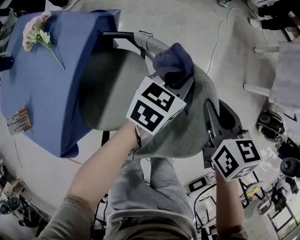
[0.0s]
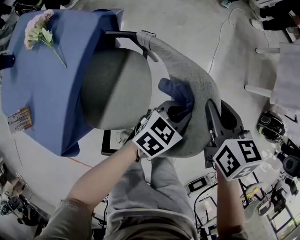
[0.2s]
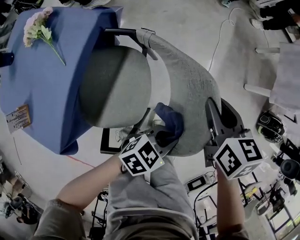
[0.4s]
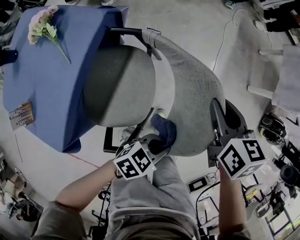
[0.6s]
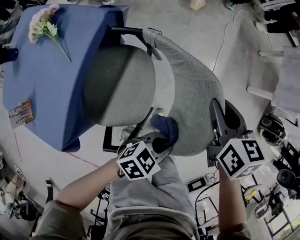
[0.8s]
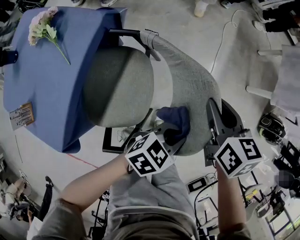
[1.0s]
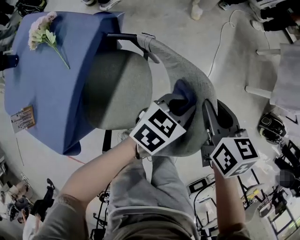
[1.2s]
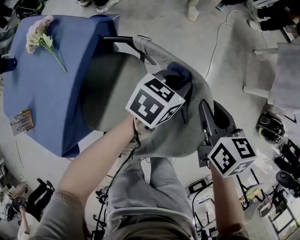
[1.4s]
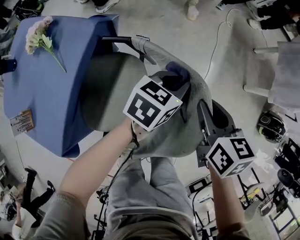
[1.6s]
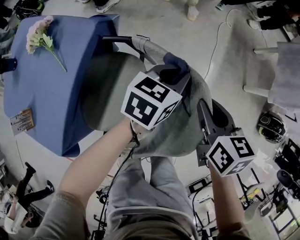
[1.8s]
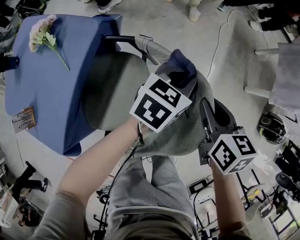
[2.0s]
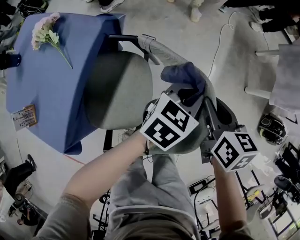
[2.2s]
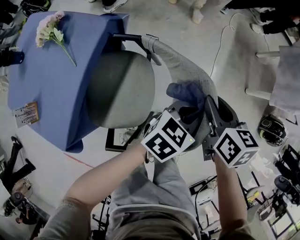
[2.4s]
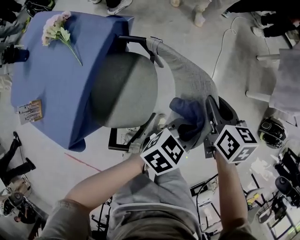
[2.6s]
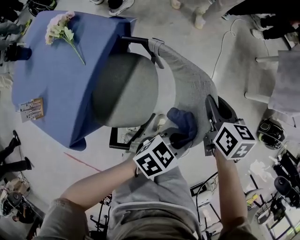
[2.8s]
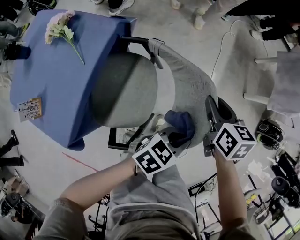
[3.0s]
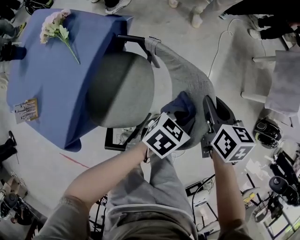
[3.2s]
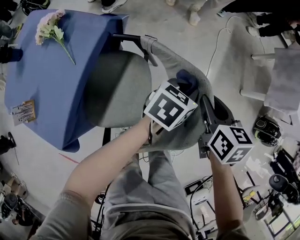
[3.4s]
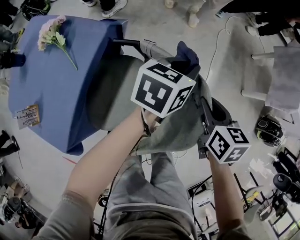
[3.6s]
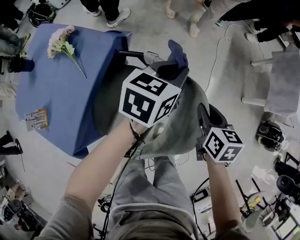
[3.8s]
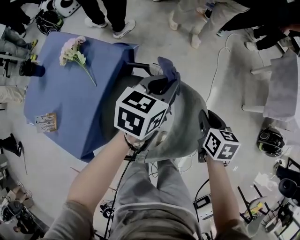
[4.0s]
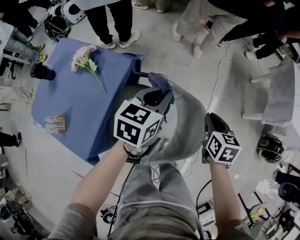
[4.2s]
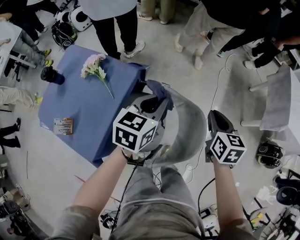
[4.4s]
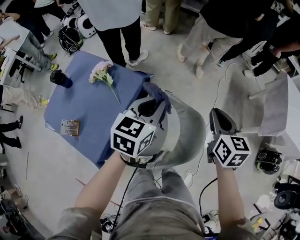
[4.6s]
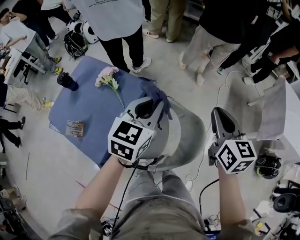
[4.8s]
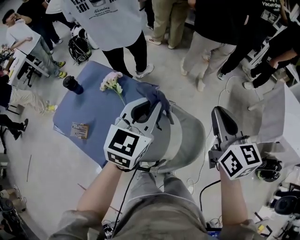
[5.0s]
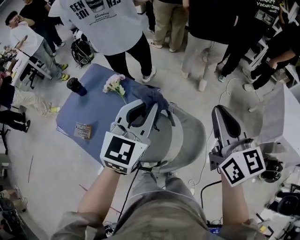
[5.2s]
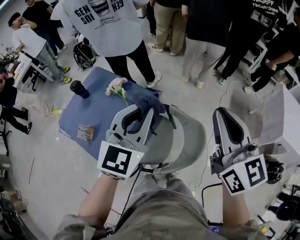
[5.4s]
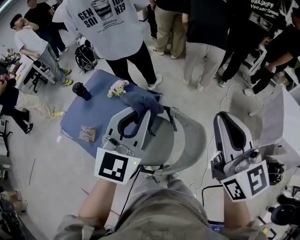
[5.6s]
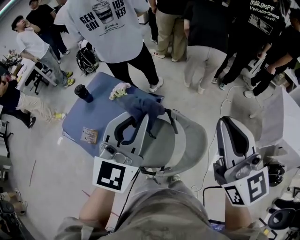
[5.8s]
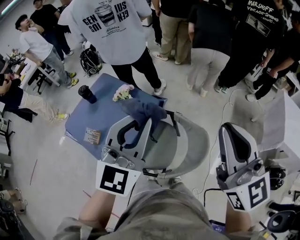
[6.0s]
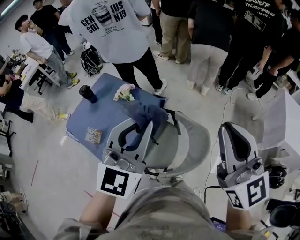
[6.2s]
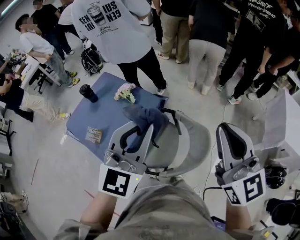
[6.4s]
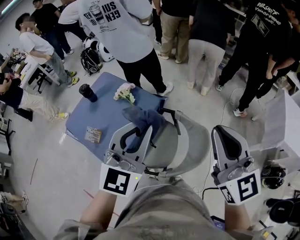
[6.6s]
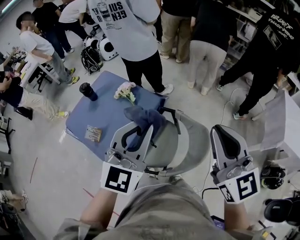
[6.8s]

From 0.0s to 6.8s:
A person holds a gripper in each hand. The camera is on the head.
From 0.0s to 1.4s: The left gripper reaches approximately 25 cm backward, then returns.
From 1.4s to 2.8s: The left gripper travels backward by approximately 20 cm.
From 2.8s to 4.0s: The left gripper is displaced forward, to the left and upward by roughly 30 cm, and swivels approximately 30 degrees.
From 4.0s to 5.4s: The left gripper goes approximately 35 cm upward and to the left, and swivels about 40 degrees. The right gripper goes approximately 40 cm upward, and tips its fingers upward by roughly 50 degrees.
From 5.4s to 6.8s: The right gripper shifts by about 5 cm, while the left gripper travels backward by some 5 cm.

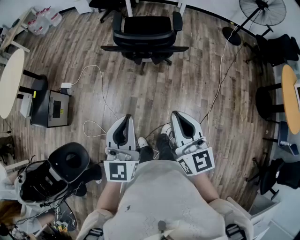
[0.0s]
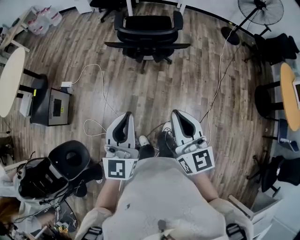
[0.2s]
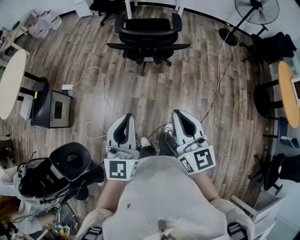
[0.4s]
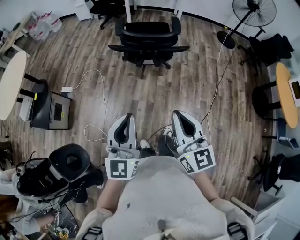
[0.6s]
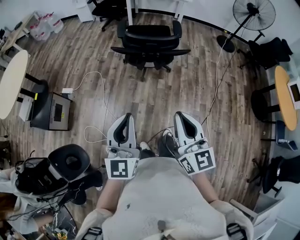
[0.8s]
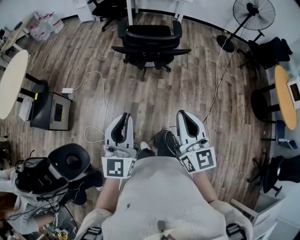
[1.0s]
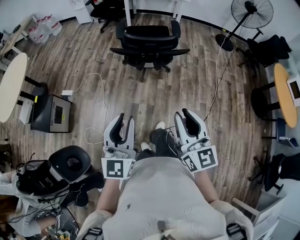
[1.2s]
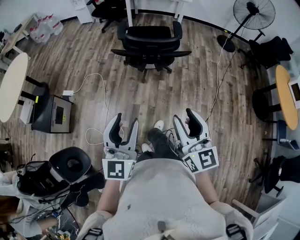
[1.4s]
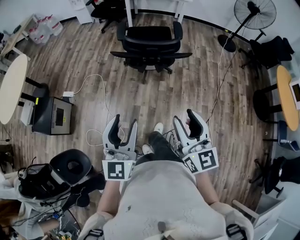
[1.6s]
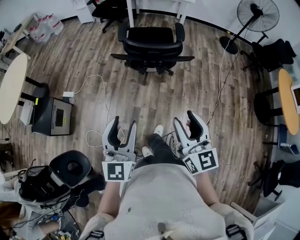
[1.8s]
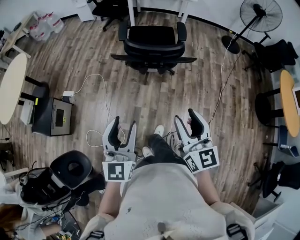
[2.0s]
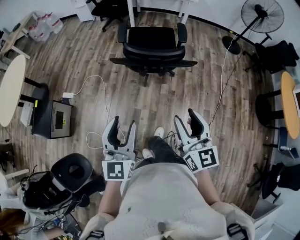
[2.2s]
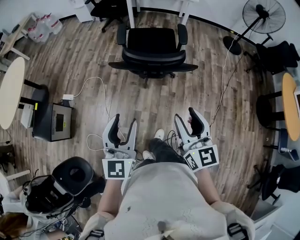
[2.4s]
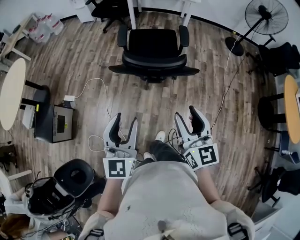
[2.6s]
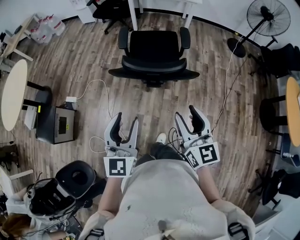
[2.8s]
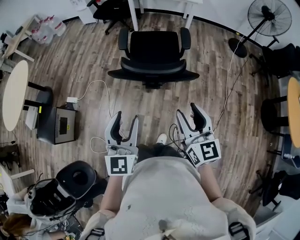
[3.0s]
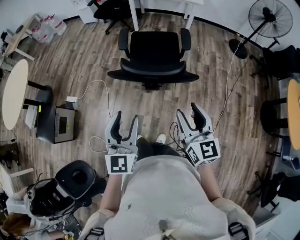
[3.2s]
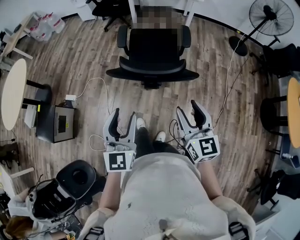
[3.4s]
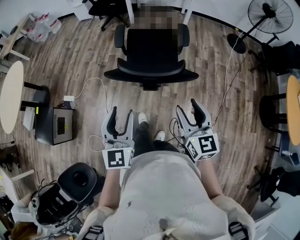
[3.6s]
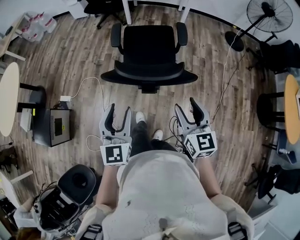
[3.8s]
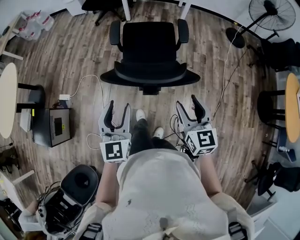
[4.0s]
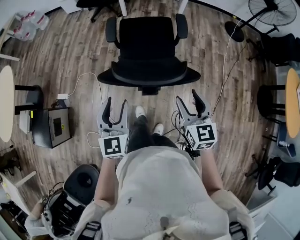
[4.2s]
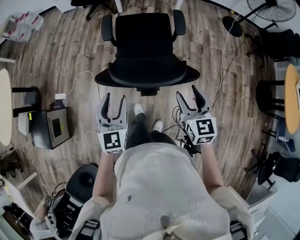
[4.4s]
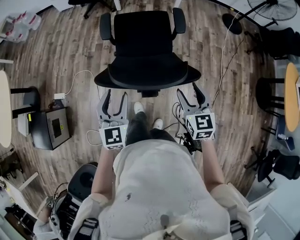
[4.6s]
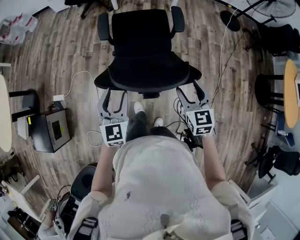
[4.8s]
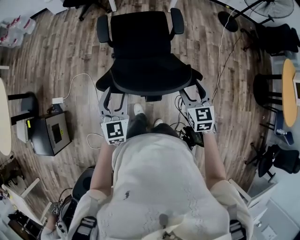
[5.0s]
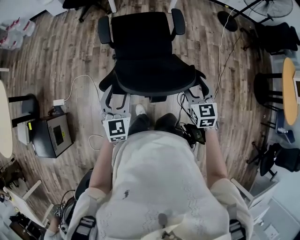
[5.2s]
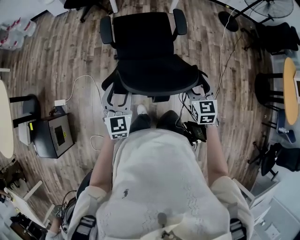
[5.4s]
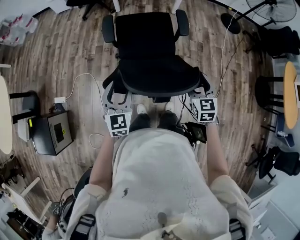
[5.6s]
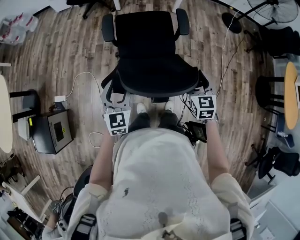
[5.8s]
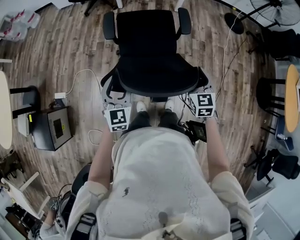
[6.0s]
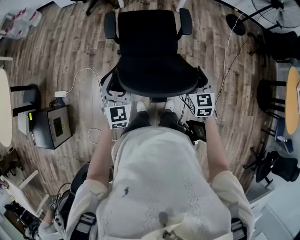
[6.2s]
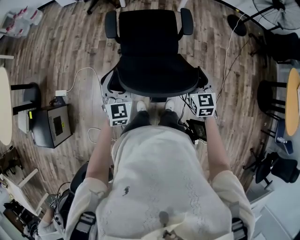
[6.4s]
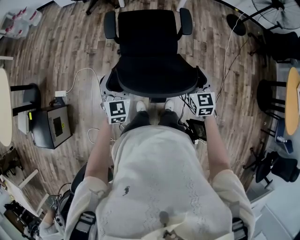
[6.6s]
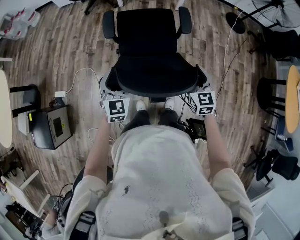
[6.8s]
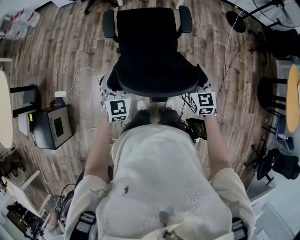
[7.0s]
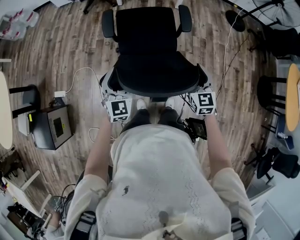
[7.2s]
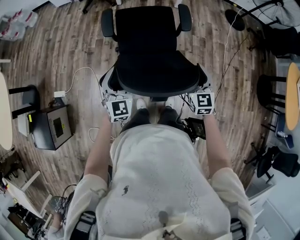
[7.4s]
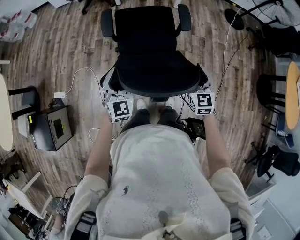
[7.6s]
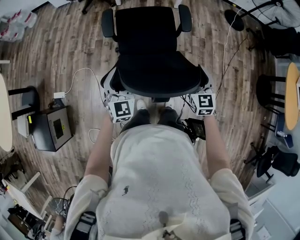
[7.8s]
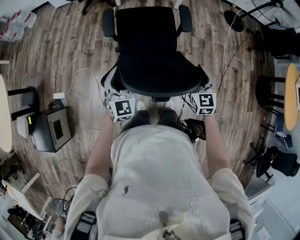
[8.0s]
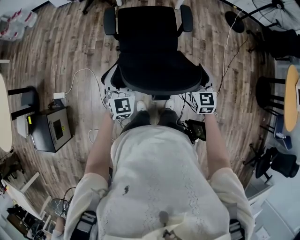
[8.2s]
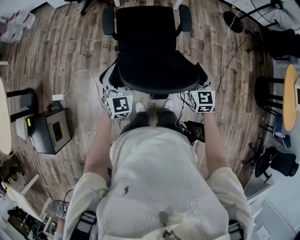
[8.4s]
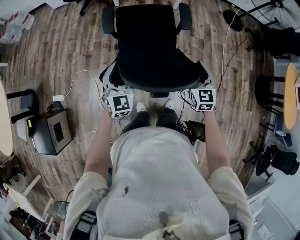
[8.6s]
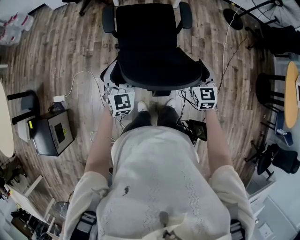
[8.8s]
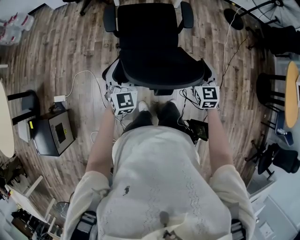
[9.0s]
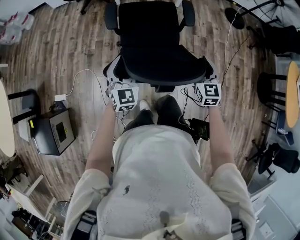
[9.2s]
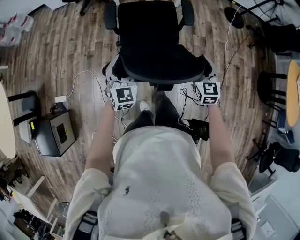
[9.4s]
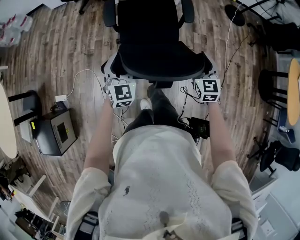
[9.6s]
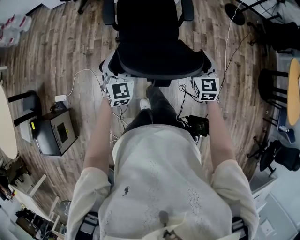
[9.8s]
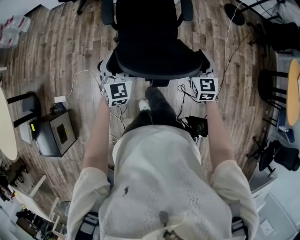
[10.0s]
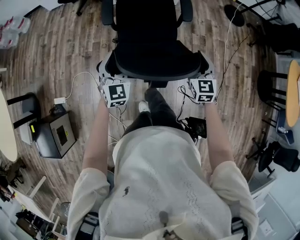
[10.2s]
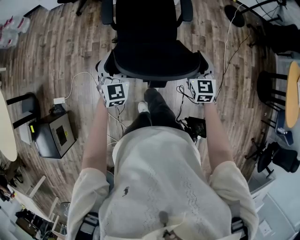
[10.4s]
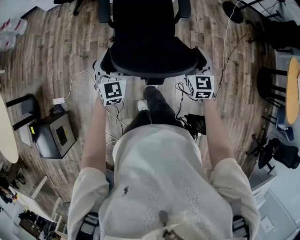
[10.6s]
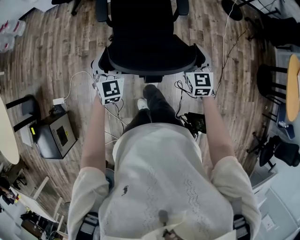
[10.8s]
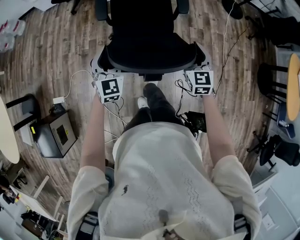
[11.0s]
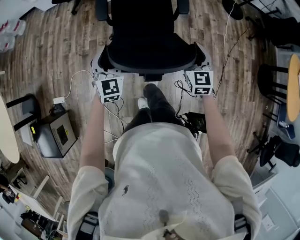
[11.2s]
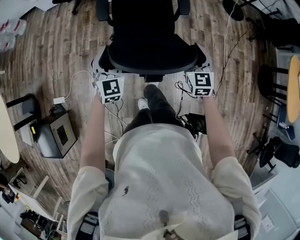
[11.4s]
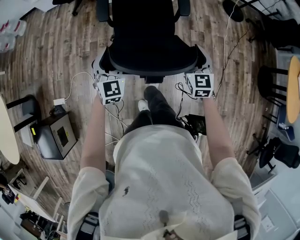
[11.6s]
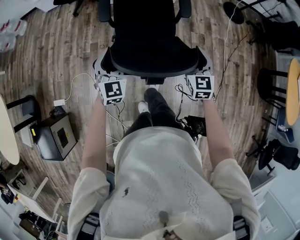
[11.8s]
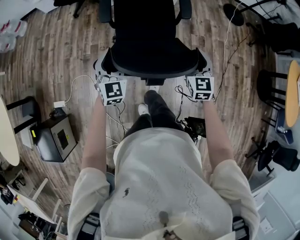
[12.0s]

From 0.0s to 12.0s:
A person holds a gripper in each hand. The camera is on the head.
From 0.0s to 1.6s: The left gripper moves to the left and backward, roughly 10 cm, and opens. The right gripper goes approximately 10 cm backward and to the left, and opens.
From 1.6s to 3.0s: The grippers both shift forward by roughly 30 cm.
From 3.0s to 4.4s: The two grippers go about 25 cm forward and downward.
From 4.4s to 6.0s: The left gripper goes approximately 15 cm forward, downward and to the left, while the right gripper travels forward and downward by about 15 cm.
From 6.0s to 7.6s: The left gripper heads forward, covering about 5 cm.
From 7.6s to 9.0s: Both grippers move forward, about 10 cm.
From 9.0s to 10.4s: The two grippers go roughly 10 cm forward.
From 10.4s to 12.0s: The two grippers go roughly 5 cm forward.

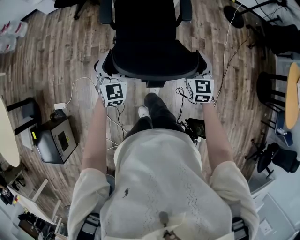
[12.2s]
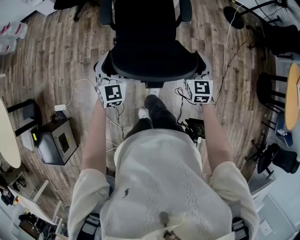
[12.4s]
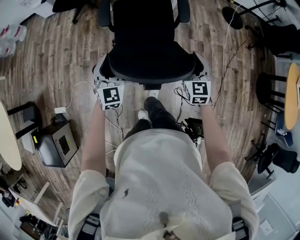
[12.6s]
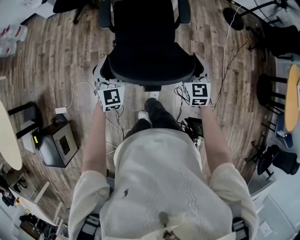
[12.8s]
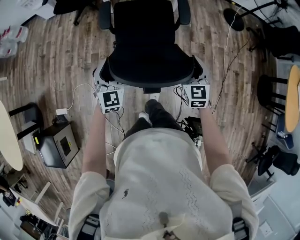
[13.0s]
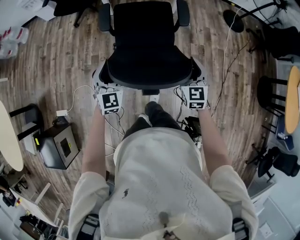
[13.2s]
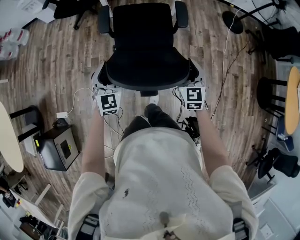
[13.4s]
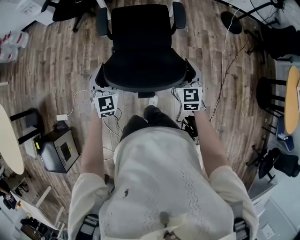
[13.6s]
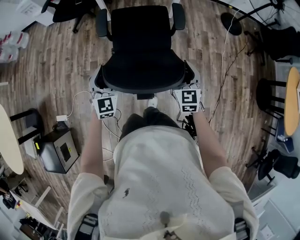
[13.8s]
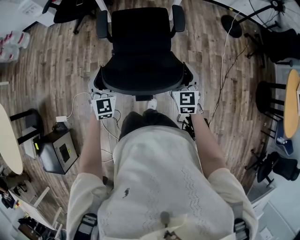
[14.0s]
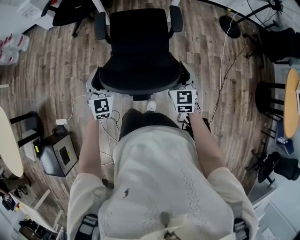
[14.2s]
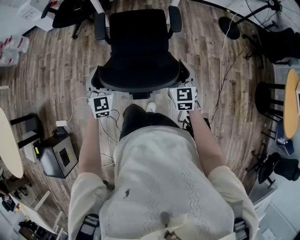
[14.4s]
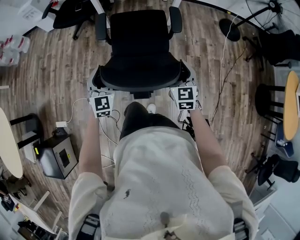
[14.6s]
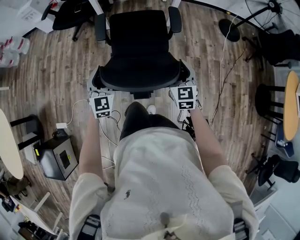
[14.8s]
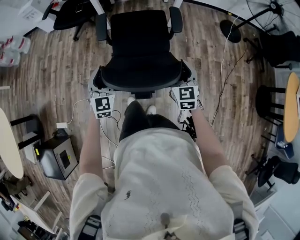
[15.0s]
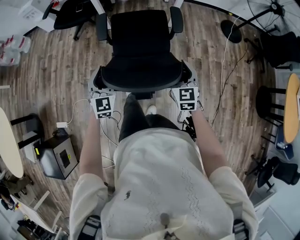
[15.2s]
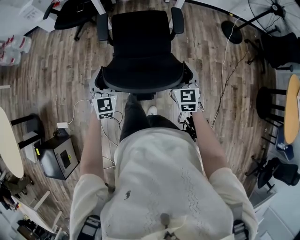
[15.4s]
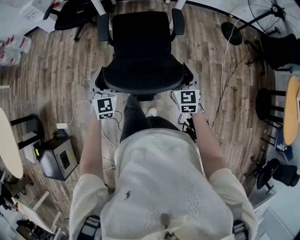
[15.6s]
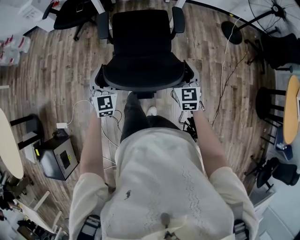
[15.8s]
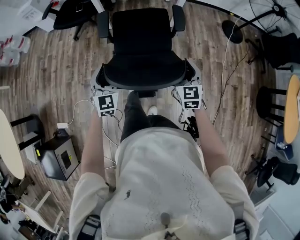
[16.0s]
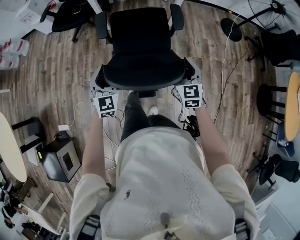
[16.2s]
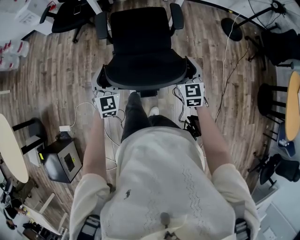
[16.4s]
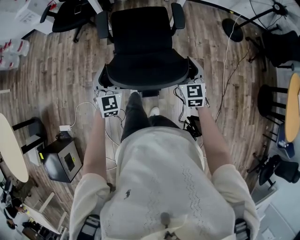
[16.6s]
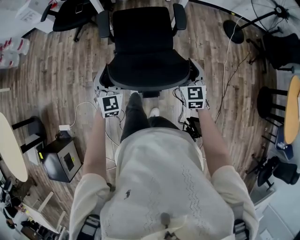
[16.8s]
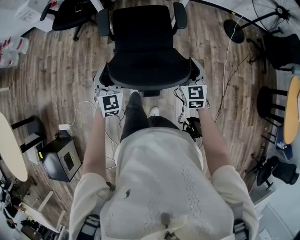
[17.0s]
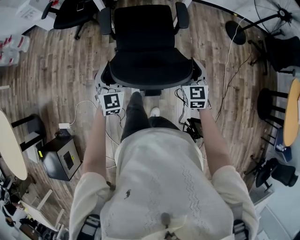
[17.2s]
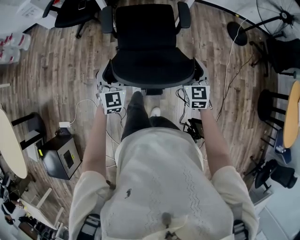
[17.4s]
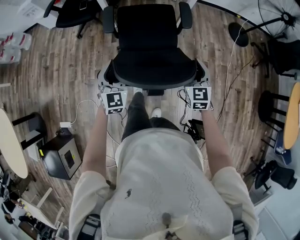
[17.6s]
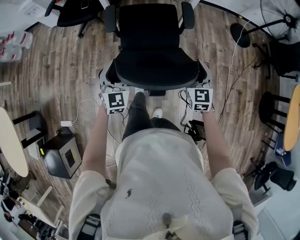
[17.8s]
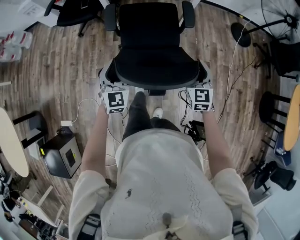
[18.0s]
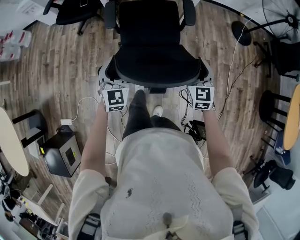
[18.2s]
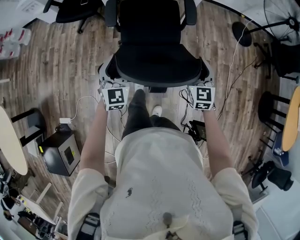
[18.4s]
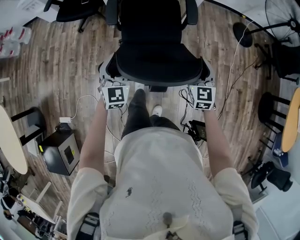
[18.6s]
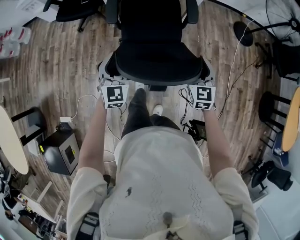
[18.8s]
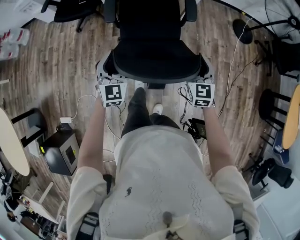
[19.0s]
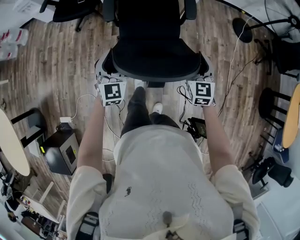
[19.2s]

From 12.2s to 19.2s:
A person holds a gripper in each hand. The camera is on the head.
From 12.2s to 13.6s: Both grippers move forward, approximately 10 cm.
From 13.6s to 15.0s: Both grippers travel together forward, roughly 10 cm.
From 15.0s to 16.4s: Both grippers travel together forward, roughly 5 cm.
From 16.4s to 17.8s: Both grippers travel together forward, roughly 10 cm.
From 17.8s to 19.2s: Both grippers travel together forward, about 5 cm.
